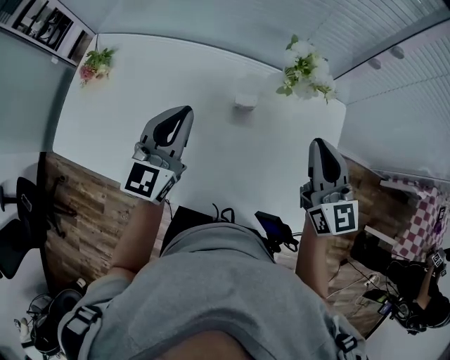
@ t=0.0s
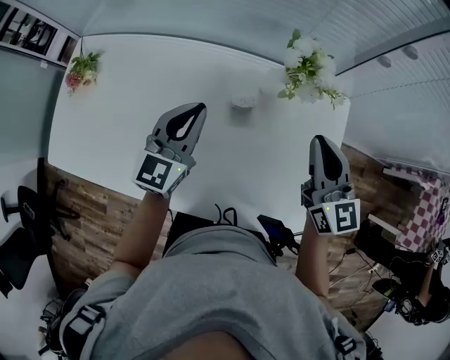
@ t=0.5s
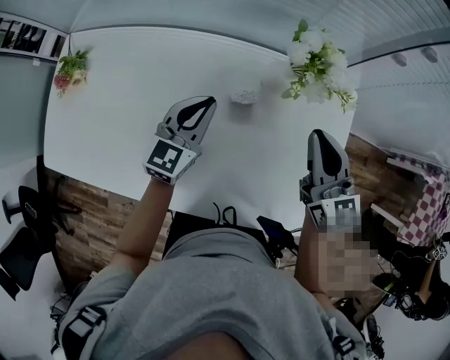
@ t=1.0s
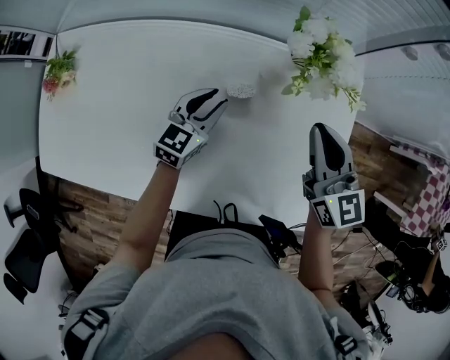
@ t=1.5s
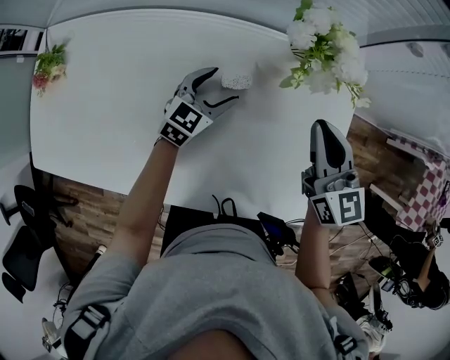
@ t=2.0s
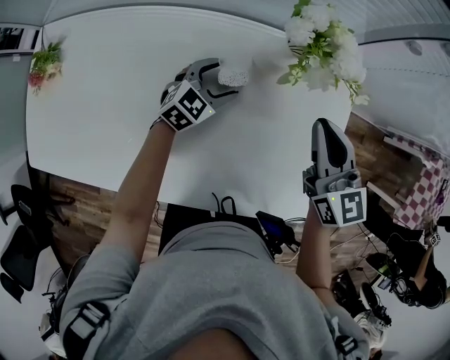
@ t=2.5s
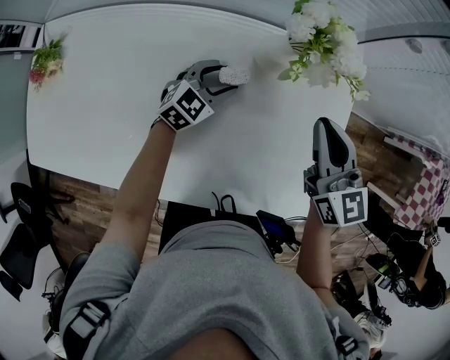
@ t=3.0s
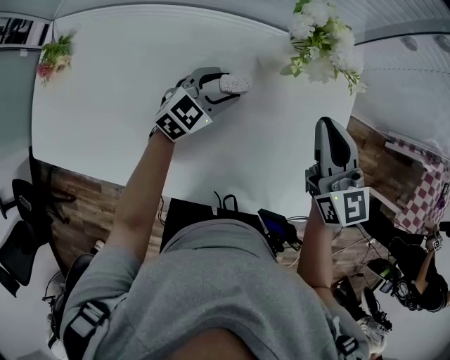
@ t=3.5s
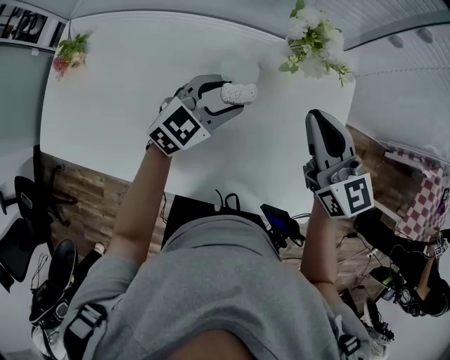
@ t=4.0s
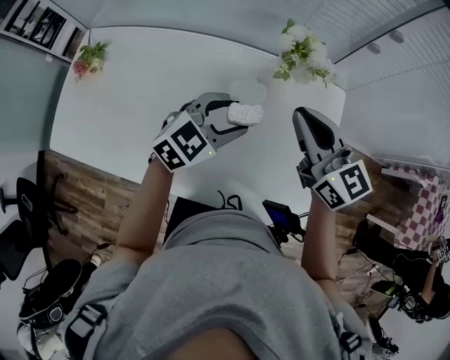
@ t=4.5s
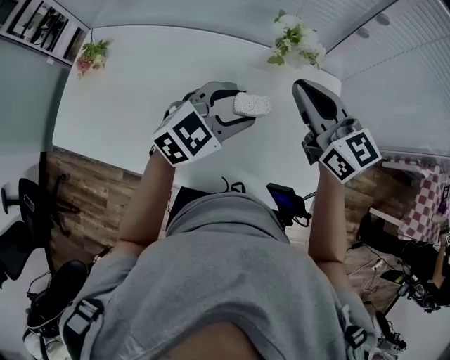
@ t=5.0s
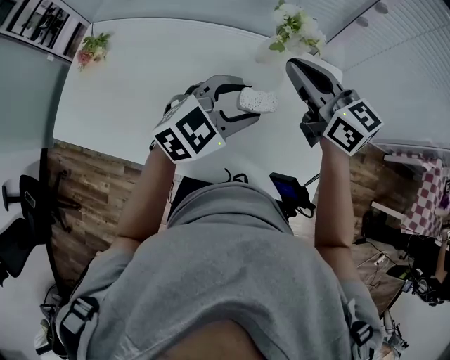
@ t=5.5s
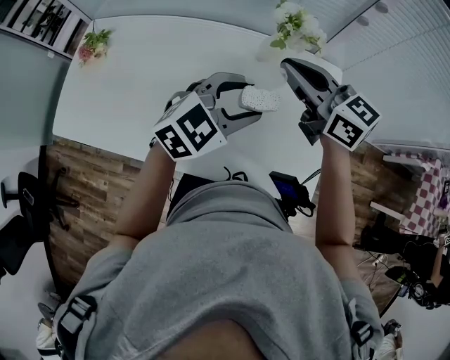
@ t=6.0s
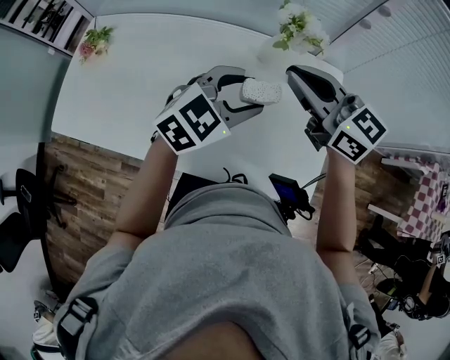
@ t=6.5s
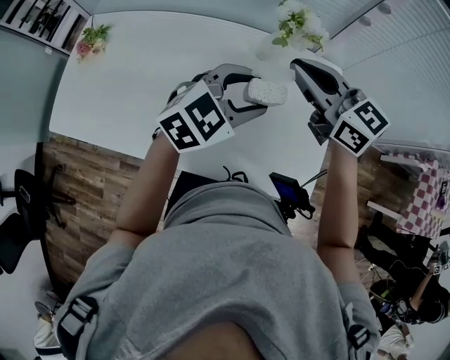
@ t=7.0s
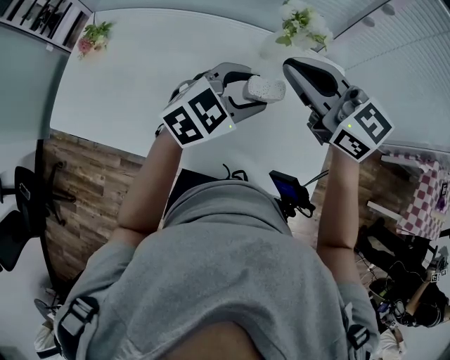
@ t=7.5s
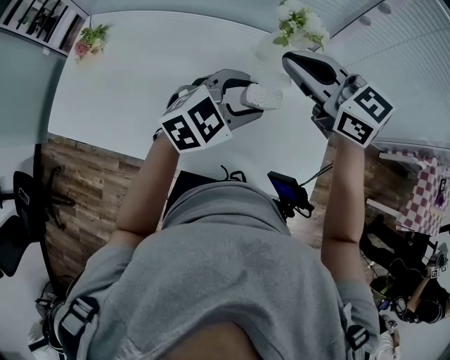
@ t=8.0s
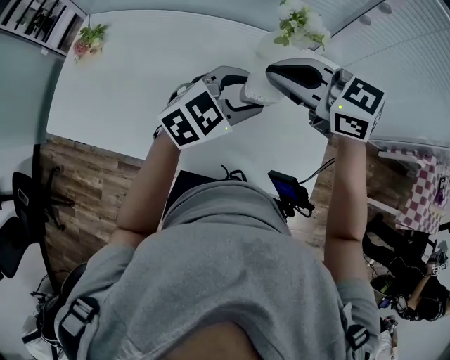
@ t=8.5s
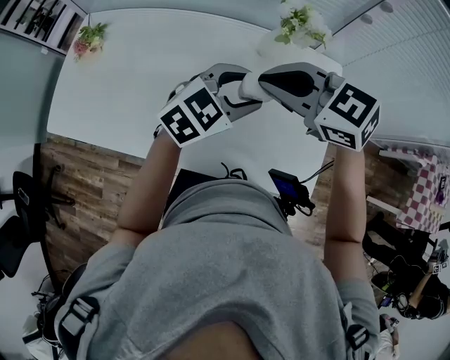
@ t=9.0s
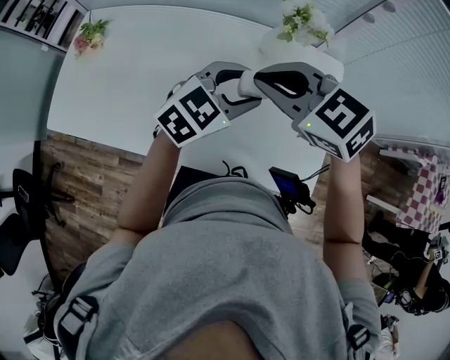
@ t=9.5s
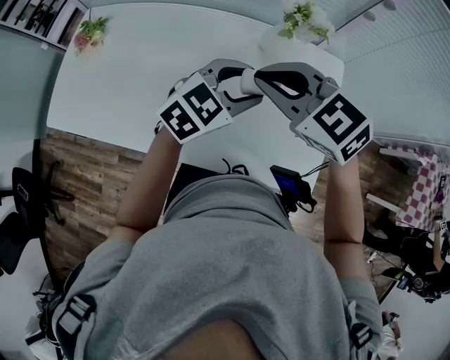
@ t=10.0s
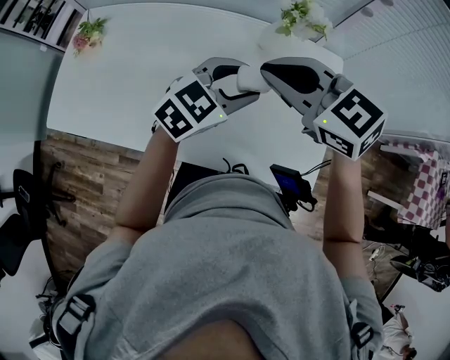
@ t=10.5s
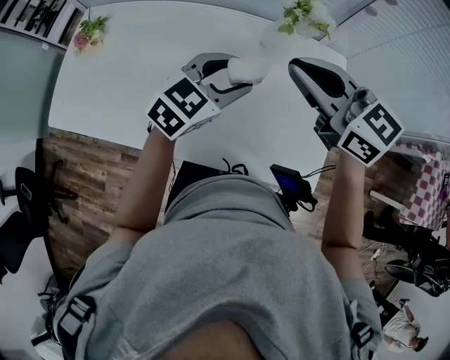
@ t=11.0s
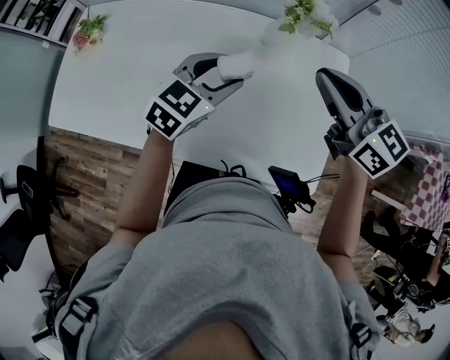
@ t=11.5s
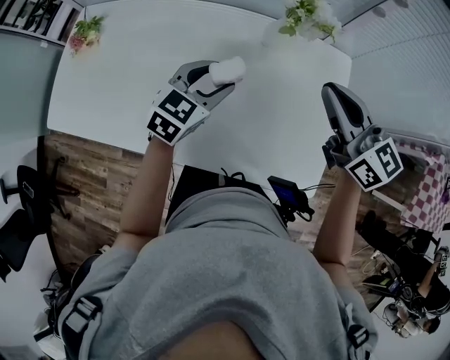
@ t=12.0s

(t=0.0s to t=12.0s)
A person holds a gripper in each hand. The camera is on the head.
t=0.0s - t=2.0s: The right gripper moves downward and forward, approximately 10 cm; the left gripper shifts some 30 cm downward, forward and to the right, rotates approximately 30 degrees, and opens up.
t=2.0s - t=4.0s: The left gripper is displaced upward and backward by approximately 15 cm. Meanwhile the right gripper travels upward by about 5 cm.
t=4.0s - t=6.0s: The right gripper moves upward and to the left, about 10 cm, and turns by about 20 degrees. Meanwhile the left gripper goes about 15 cm upward, backward and to the right.
t=6.0s - t=8.0s: The grippers make only small movements.
t=8.0s - t=10.0s: The right gripper moves roughly 10 cm, and rotates about 20 degrees.
t=10.0s - t=12.0s: The left gripper moves downward and to the left, approximately 10 cm. Meanwhile the right gripper moves to the right, about 15 cm, and rotates some 40 degrees.

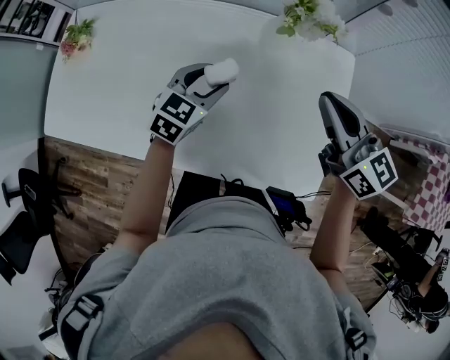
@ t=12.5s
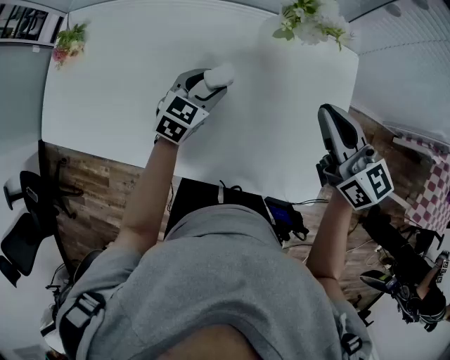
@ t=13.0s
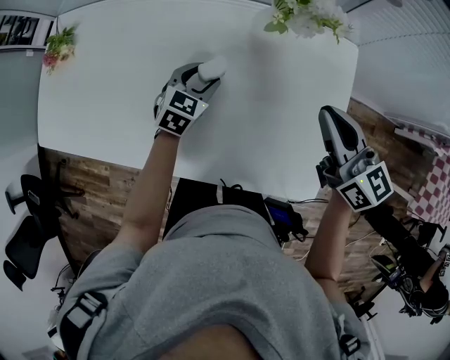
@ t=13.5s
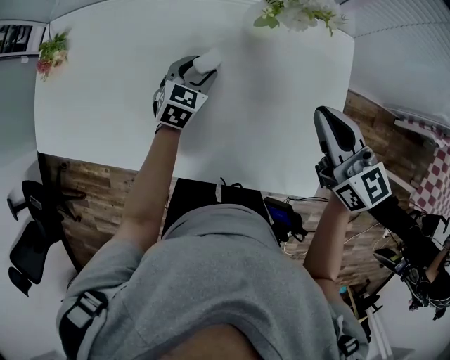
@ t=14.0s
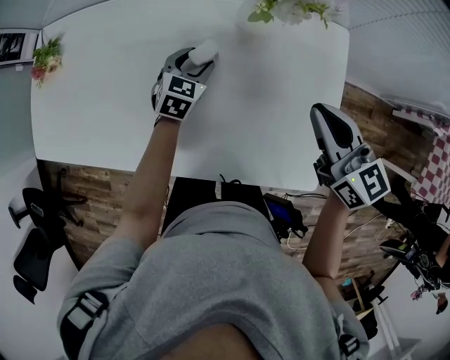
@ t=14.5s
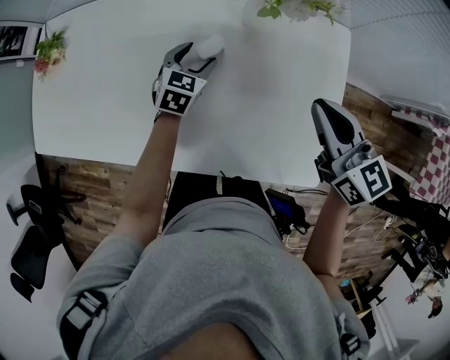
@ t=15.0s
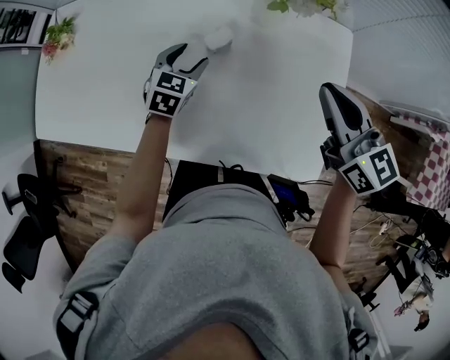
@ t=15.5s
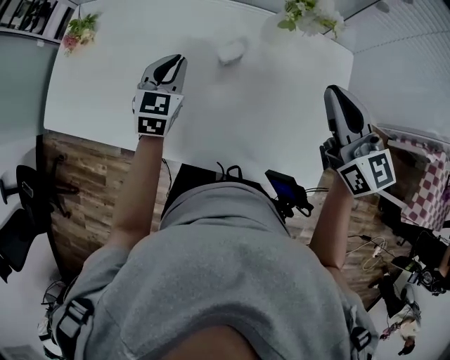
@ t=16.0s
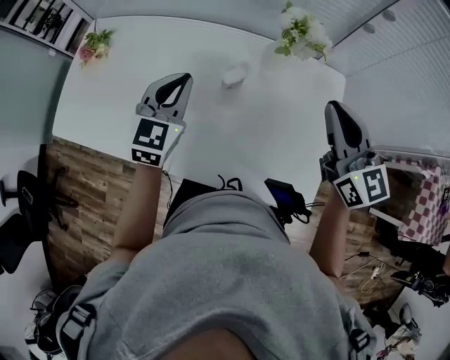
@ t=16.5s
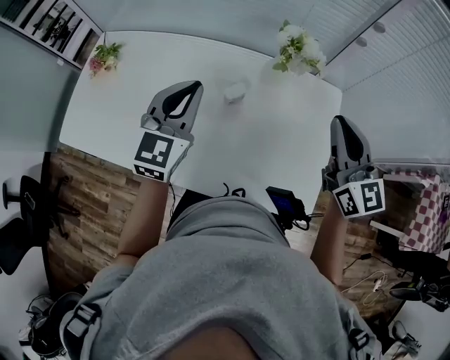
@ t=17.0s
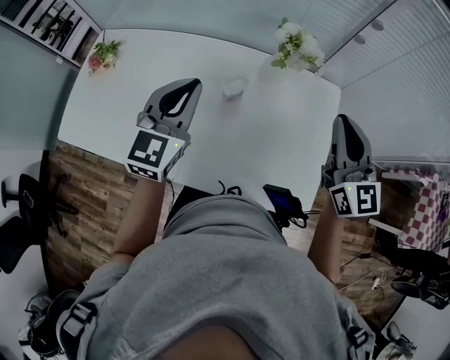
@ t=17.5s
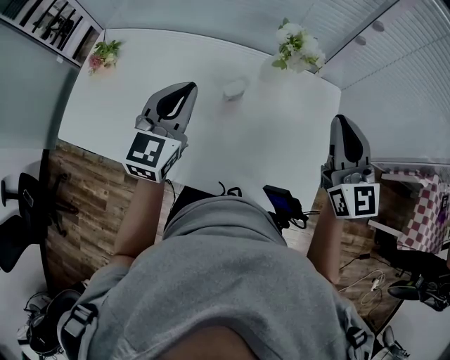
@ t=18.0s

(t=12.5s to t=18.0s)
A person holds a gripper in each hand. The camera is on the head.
t=12.5s - t=14.5s: The left gripper goes approximately 15 cm downward and forward; the right gripper heads downward, covering roughly 5 cm.
t=14.5s - t=16.0s: The left gripper goes roughly 15 cm upward and to the left, and closes up, while the right gripper shifts approximately 5 cm upward.
t=16.0s - t=18.0s: The left gripper moves upward, roughly 15 cm. The right gripper goes about 5 cm upward, and changes its angle by roughly 20 degrees.

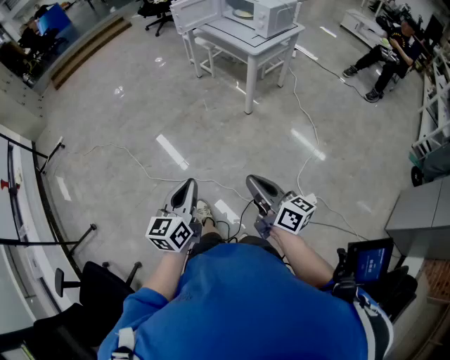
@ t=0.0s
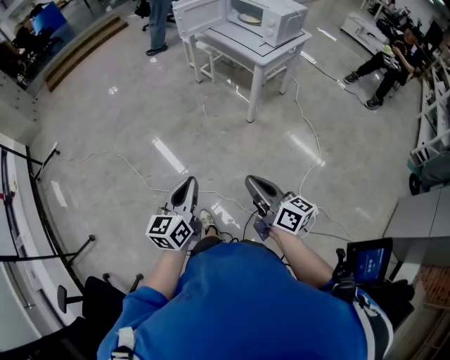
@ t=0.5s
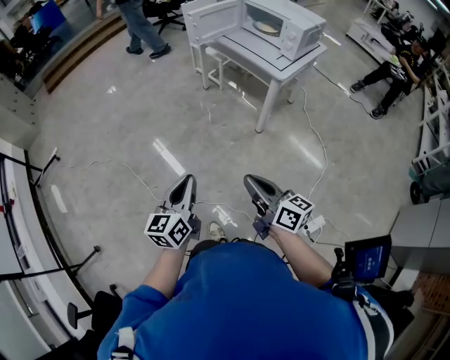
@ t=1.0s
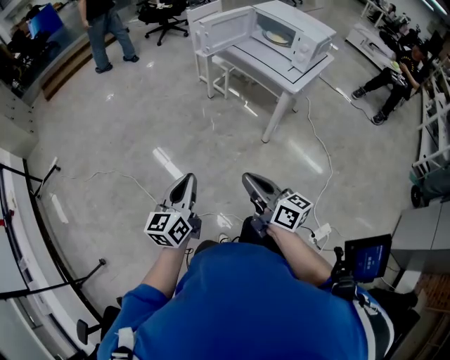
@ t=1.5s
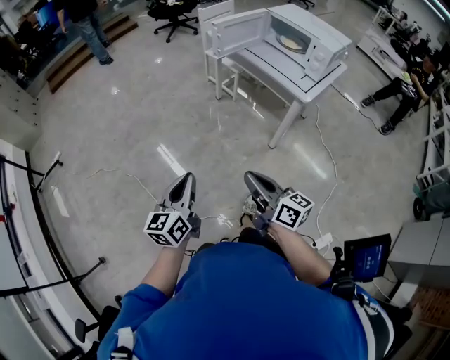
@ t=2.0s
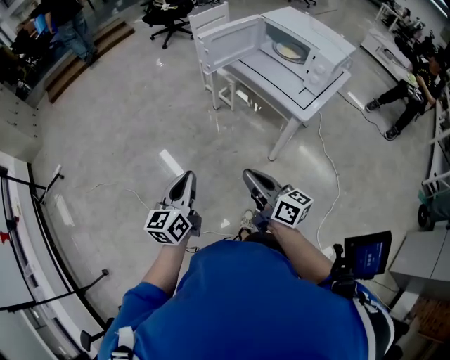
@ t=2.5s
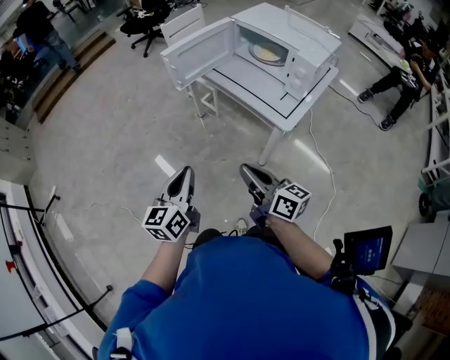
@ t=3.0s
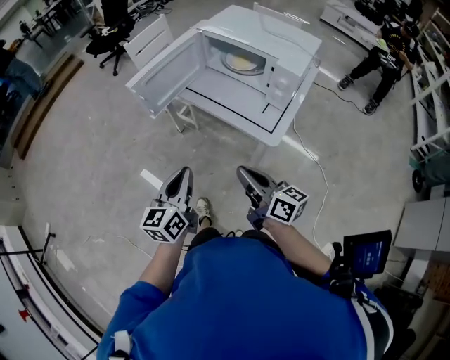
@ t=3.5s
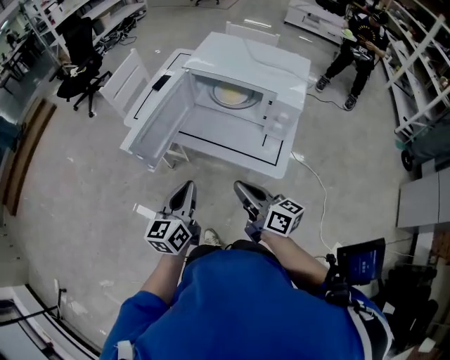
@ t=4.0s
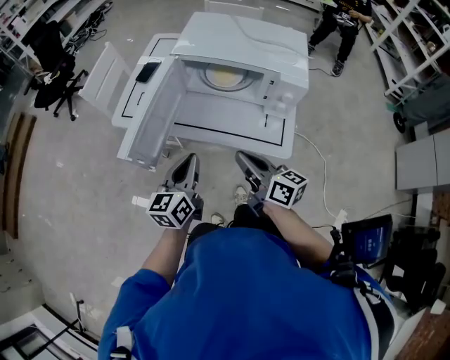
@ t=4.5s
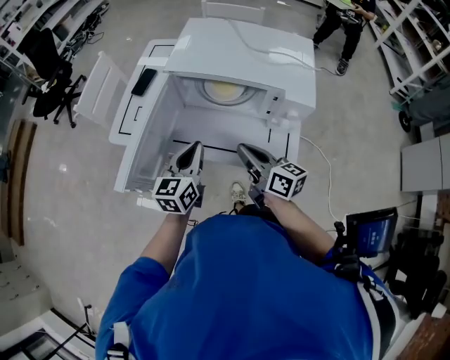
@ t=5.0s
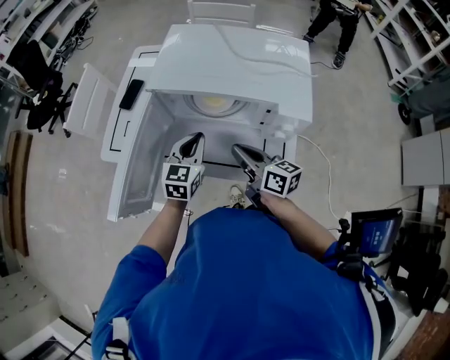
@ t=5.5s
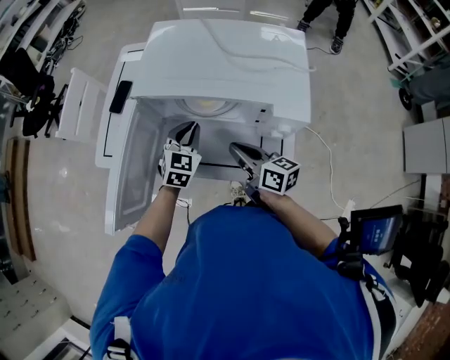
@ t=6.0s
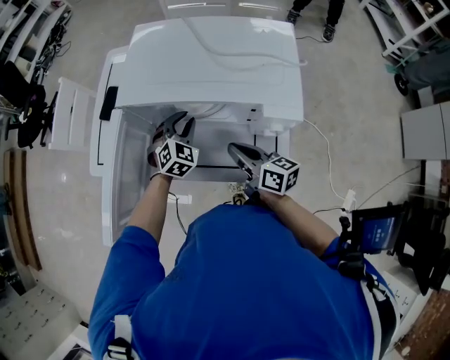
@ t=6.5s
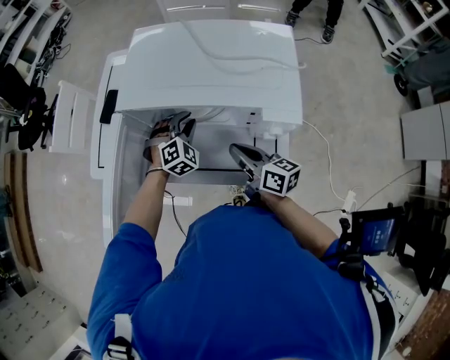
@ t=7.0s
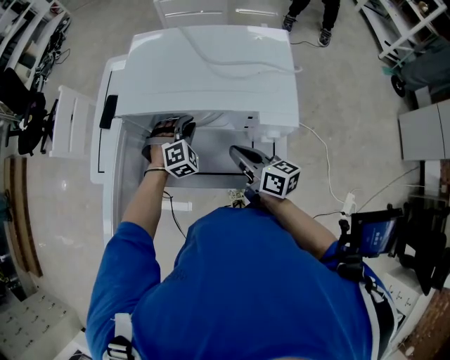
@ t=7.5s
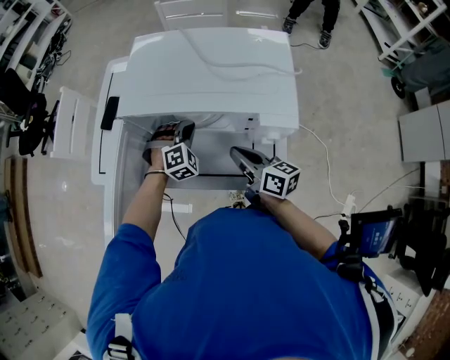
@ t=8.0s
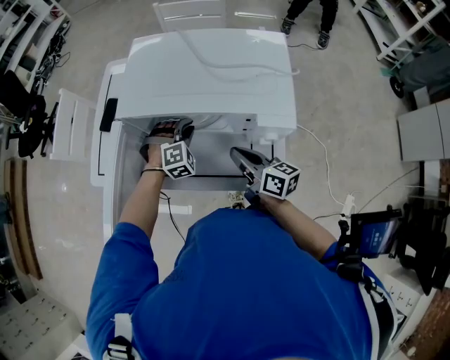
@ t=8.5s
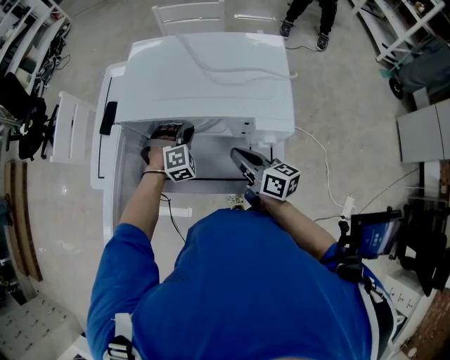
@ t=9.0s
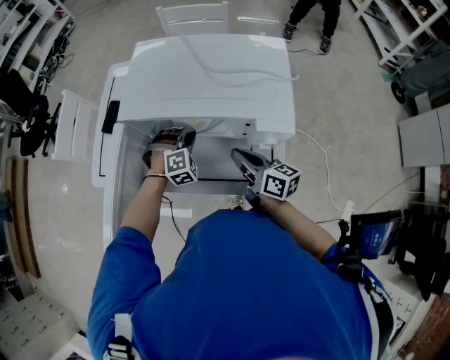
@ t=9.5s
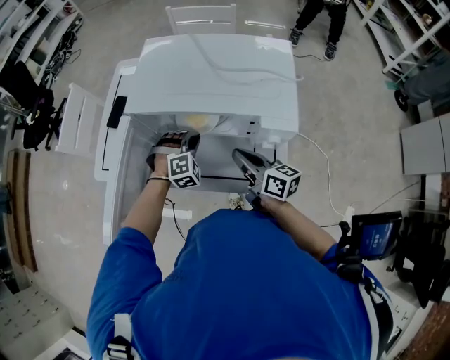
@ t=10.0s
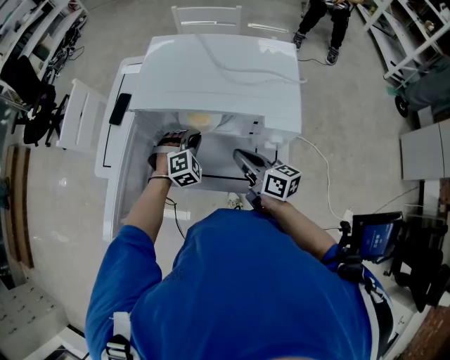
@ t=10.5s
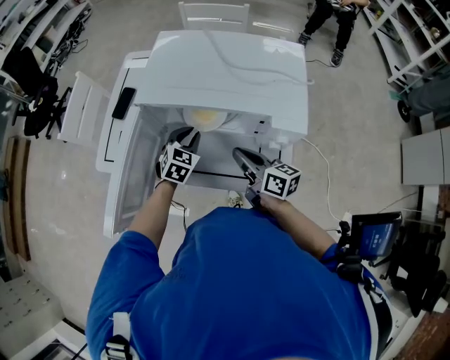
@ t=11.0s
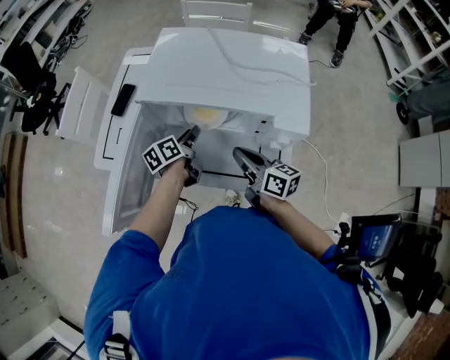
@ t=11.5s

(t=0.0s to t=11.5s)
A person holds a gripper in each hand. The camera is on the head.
t=0.0s - t=2.0s: Both grippers move forward and to the left, roughly 40 cm.
t=2.0s - t=4.0s: Both grippers are carried approximately 50 cm. The left gripper rotates roughly 30 degrees. Meanwhile the right gripper turns by roughly 20 degrees.
t=4.0s - t=6.0s: The right gripper heads forward, covering some 20 cm. Meanwhile the left gripper heads forward and to the right, covering some 35 cm, and twists some 40 degrees clockwise, seen from behind.
t=6.0s - t=7.5s: The left gripper is displaced downward by roughly 5 cm, and rolls clockwise, seen from behind, by approximately 50 degrees.
t=7.5s - t=9.5s: The grippers stay close to where they were, moving slightly.
t=9.5s - t=11.5s: The left gripper is displaced to the left by roughly 5 cm, twists about 120 degrees counterclockwise, seen from behind, and opens.
